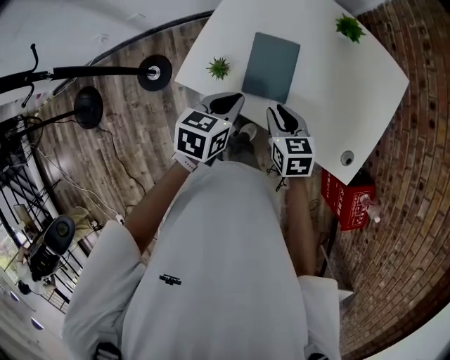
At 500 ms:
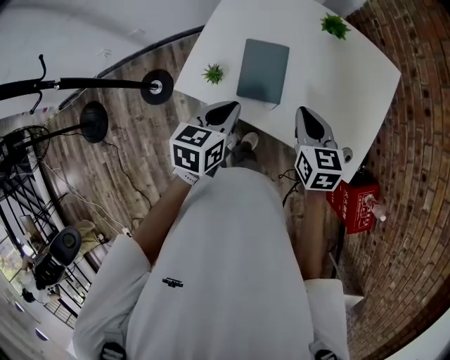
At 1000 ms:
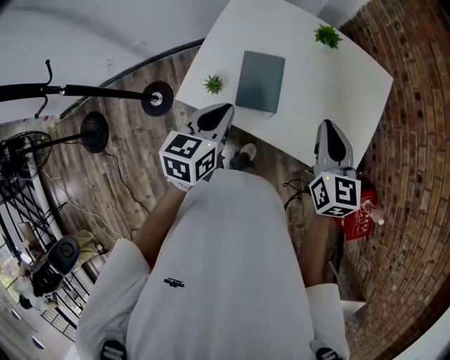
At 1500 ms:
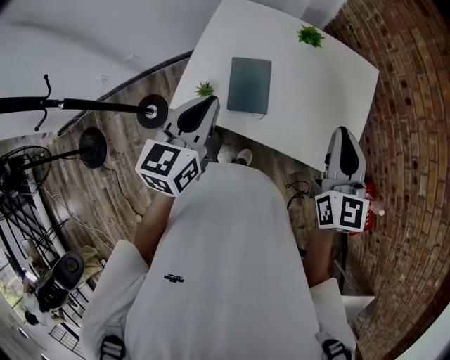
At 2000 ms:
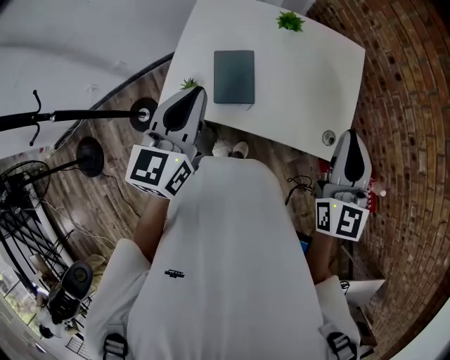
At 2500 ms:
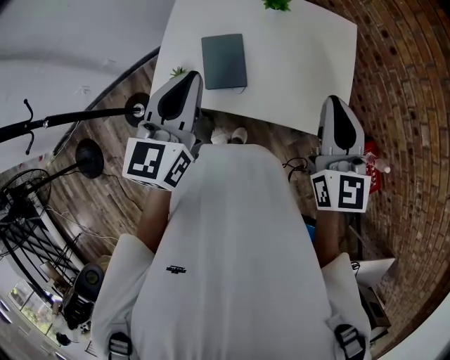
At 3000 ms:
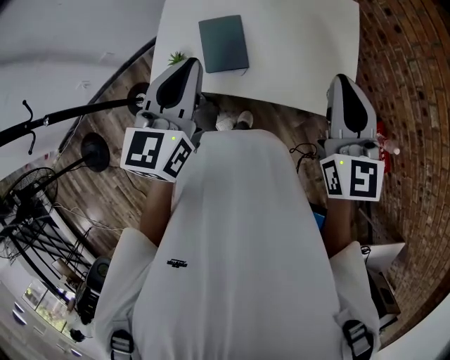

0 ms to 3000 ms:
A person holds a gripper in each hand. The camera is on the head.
0 ms to 1500 ms: The left gripper travels upward by approximately 20 cm, and swivels about 30 degrees. Meanwhile the right gripper travels upward and to the right by roughly 30 cm, and points its fingers roughly 30 degrees further upward.
1500 ms to 3000 ms: The left gripper shifts by approximately 5 cm.

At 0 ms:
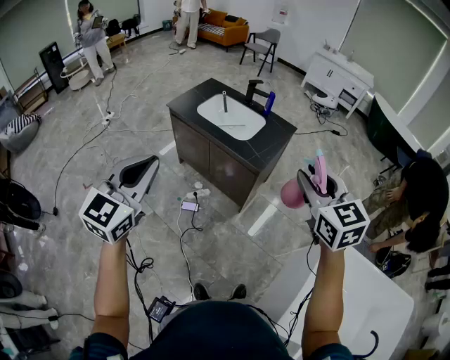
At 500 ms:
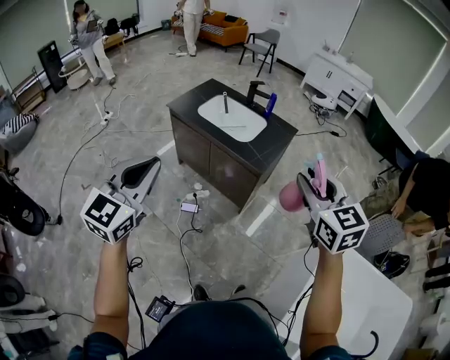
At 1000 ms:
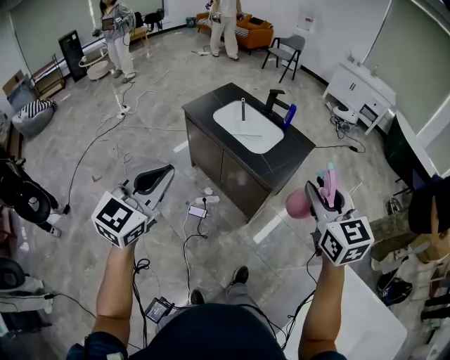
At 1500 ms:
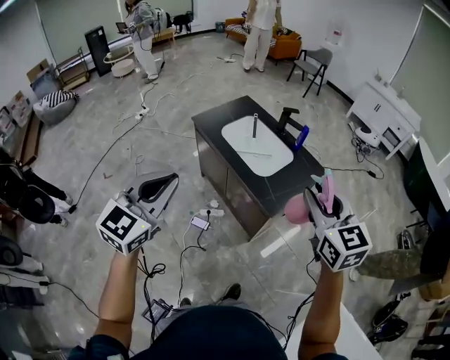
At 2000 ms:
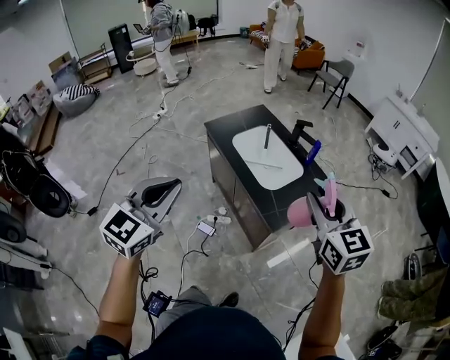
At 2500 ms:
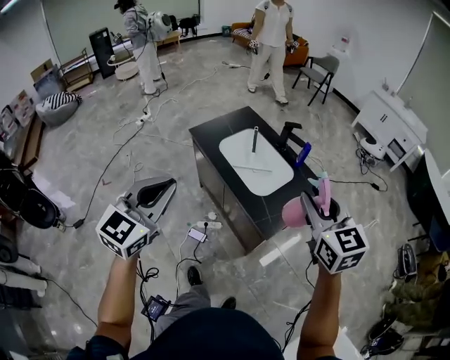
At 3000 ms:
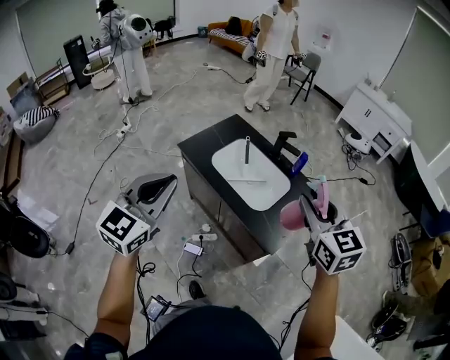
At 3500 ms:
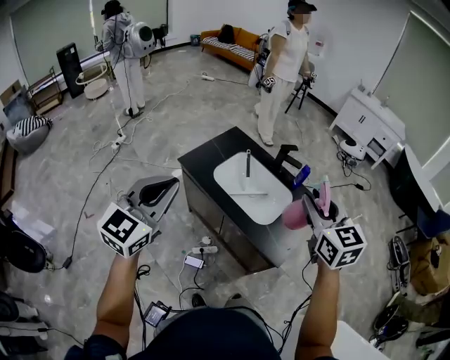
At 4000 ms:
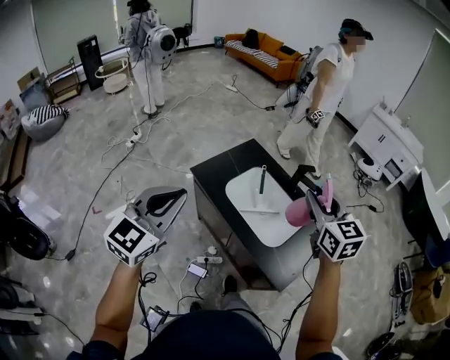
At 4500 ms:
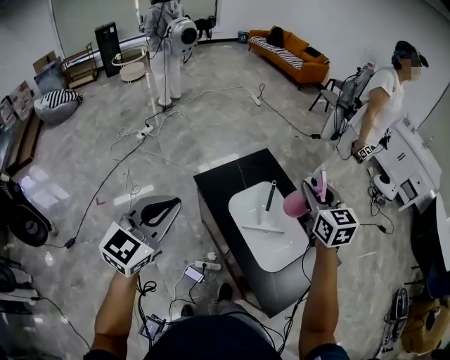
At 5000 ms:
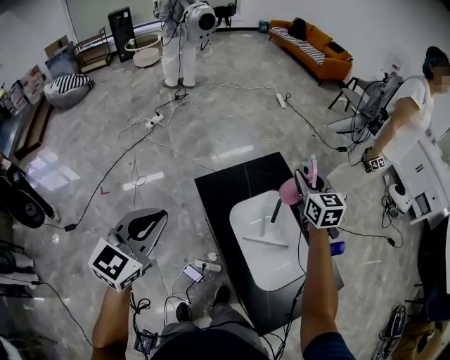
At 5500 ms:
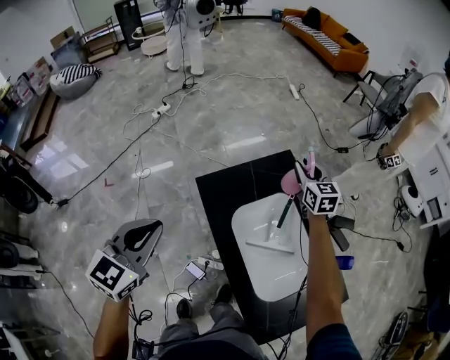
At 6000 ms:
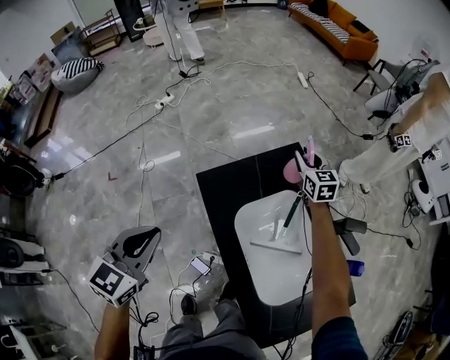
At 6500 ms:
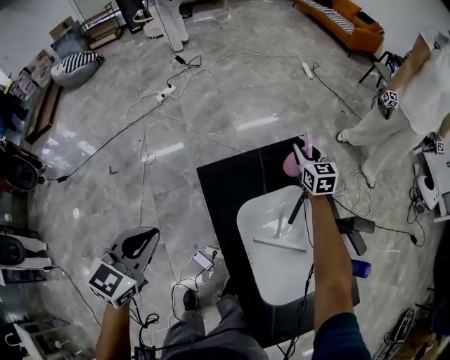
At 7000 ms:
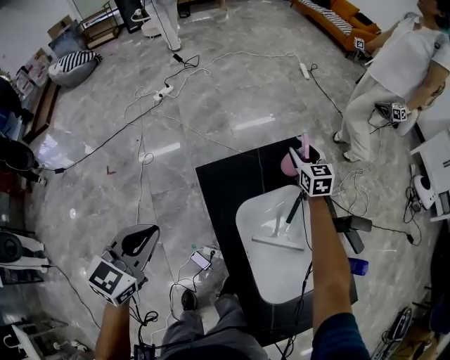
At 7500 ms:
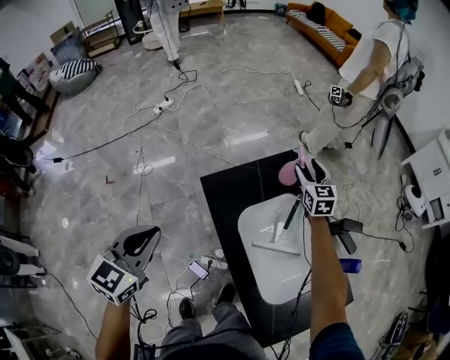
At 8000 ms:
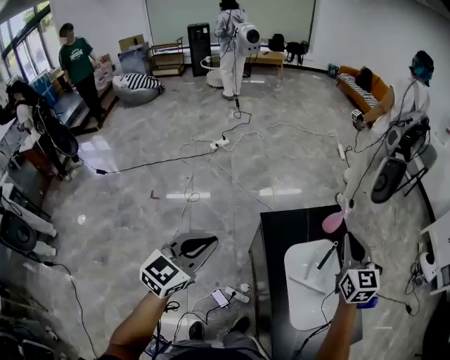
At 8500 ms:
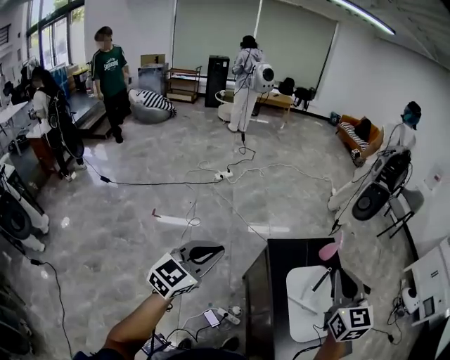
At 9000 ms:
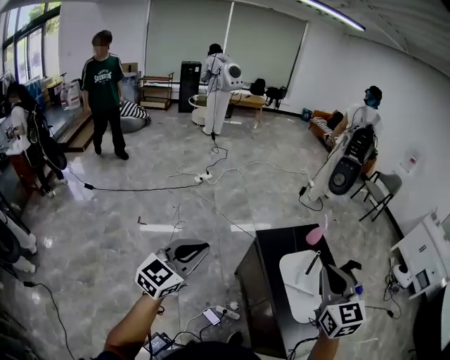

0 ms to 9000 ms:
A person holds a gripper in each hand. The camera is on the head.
0 ms to 2000 ms: The left gripper is displaced forward and to the right by some 25 cm. The right gripper heads forward, covering about 30 cm.
2000 ms to 4500 ms: Both grippers are carried forward, about 50 cm.
4500 ms to 7000 ms: The left gripper is displaced downward and forward by roughly 30 cm, and changes its angle by some 30 degrees. The right gripper moves forward and downward, approximately 50 cm, and opens its fingers.
7000 ms to 9000 ms: The two grippers travel together, backward and to the left, approximately 50 cm. The left gripper goes about 25 cm upward, and rotates about 20 degrees. The right gripper goes roughly 50 cm upward, and closes.

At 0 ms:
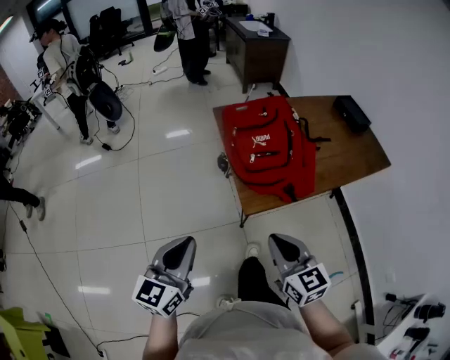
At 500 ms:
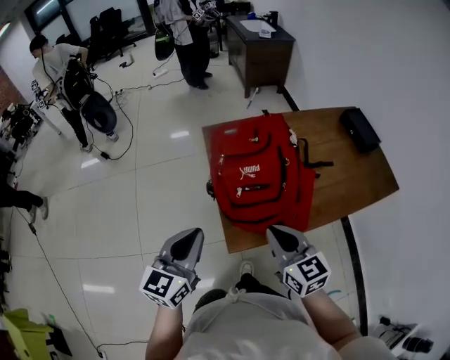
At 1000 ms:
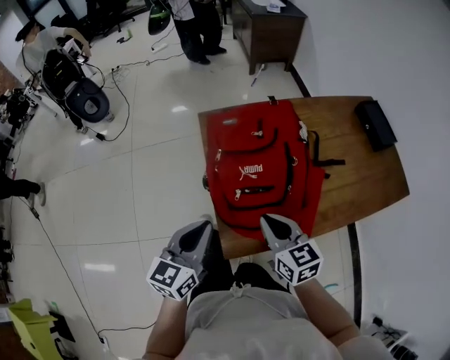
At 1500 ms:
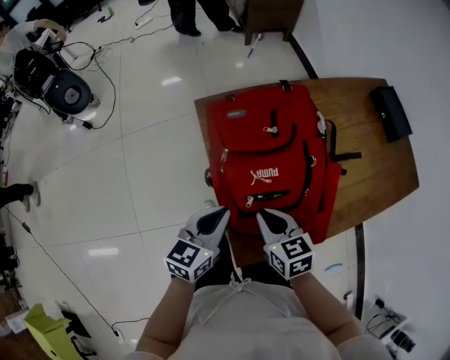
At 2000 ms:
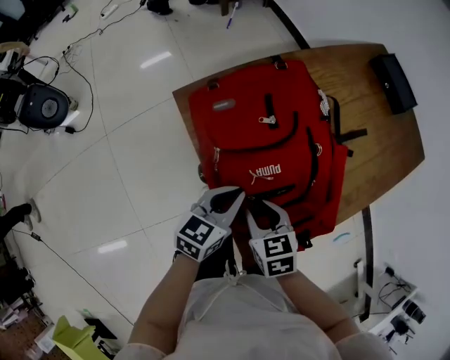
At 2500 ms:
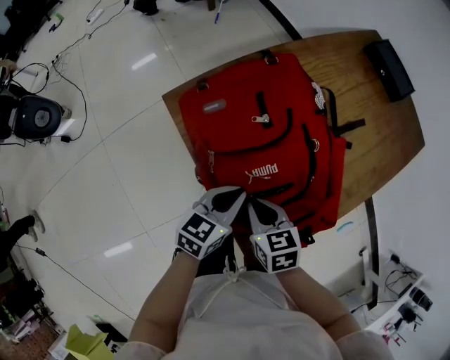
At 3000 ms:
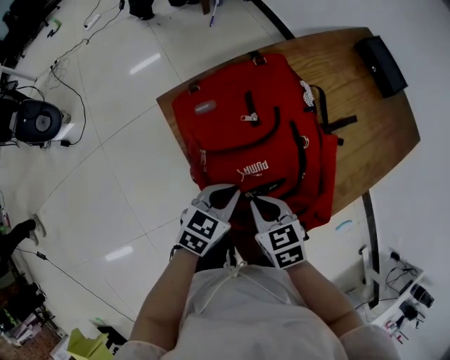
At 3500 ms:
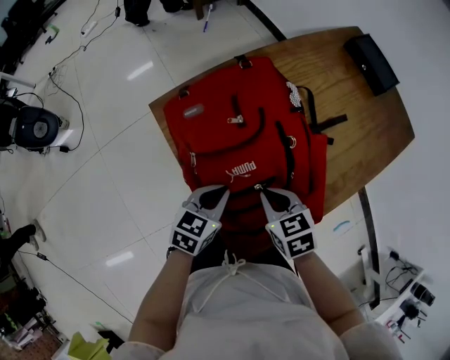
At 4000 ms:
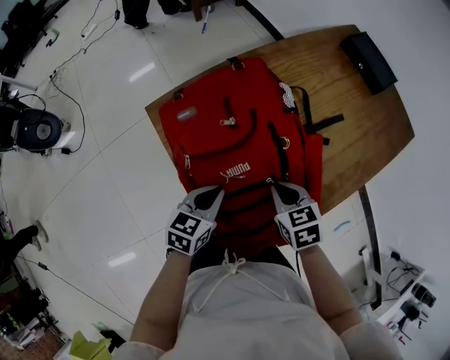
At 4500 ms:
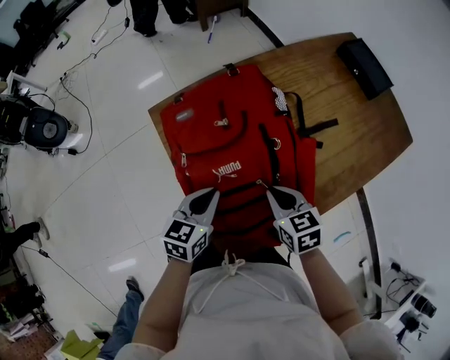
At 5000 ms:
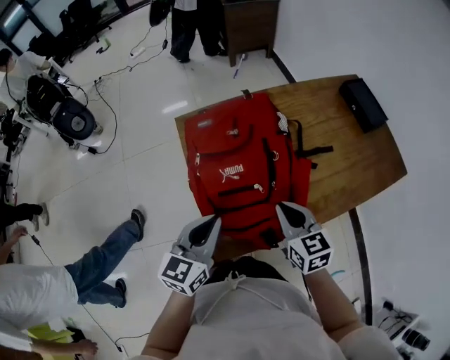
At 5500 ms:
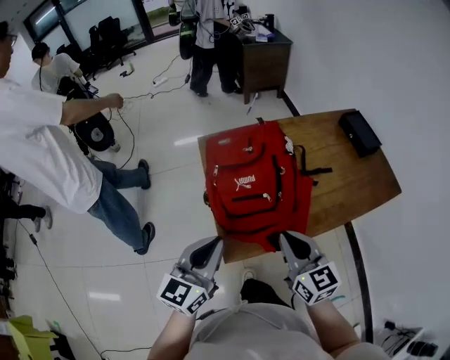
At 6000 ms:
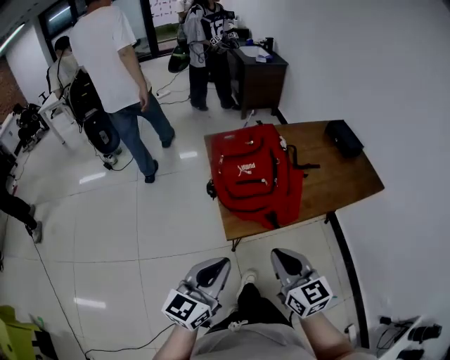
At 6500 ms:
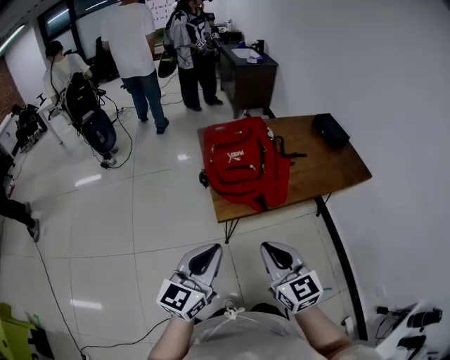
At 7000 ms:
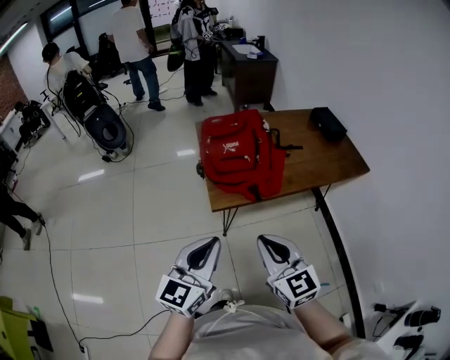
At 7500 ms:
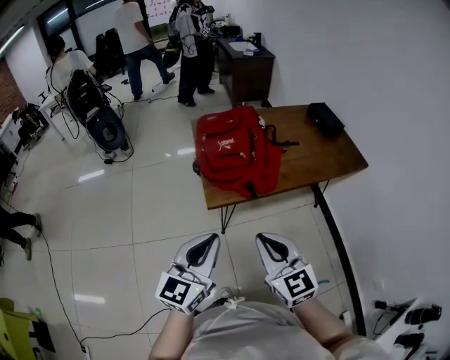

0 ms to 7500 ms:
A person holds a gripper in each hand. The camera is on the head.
0 ms to 2000 ms: The right gripper travels forward and downward by roughly 35 cm, tilts its fingers roughly 30 degrees downward, and opens its fingers, while the left gripper shifts some 40 cm forward, downward and to the right, and changes its angle by roughly 40 degrees.
2000 ms to 4000 ms: The right gripper travels to the right and forward by approximately 15 cm, and closes up.
4000 ms to 5500 ms: The grippers both shift upward and backward by some 25 cm. The right gripper tips its fingers upward by roughly 40 degrees. Meanwhile the left gripper points its fingers some 30 degrees further upward.
5500 ms to 7500 ms: The grippers both shift backward by roughly 25 cm.

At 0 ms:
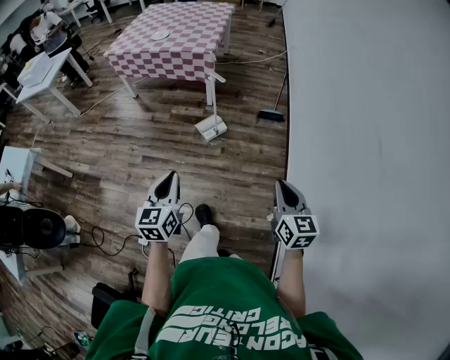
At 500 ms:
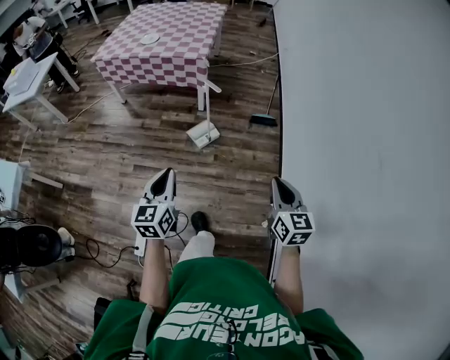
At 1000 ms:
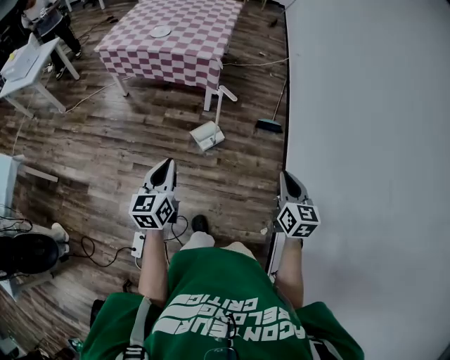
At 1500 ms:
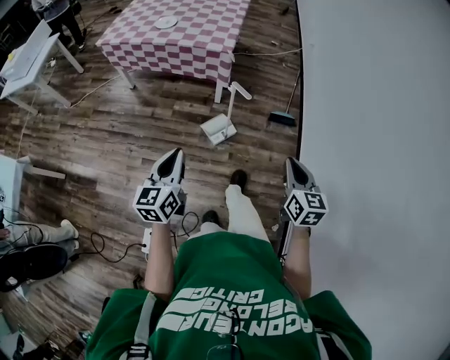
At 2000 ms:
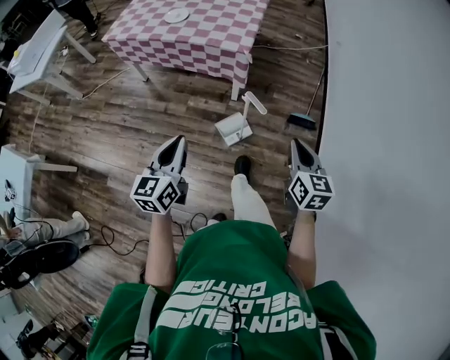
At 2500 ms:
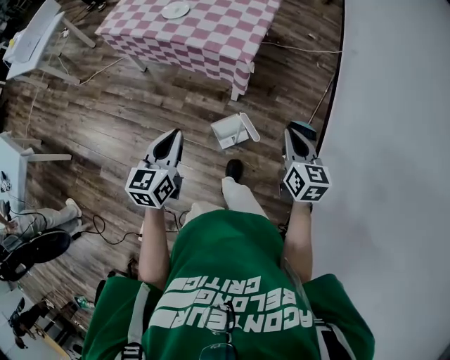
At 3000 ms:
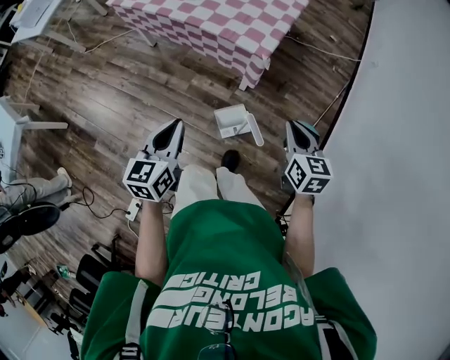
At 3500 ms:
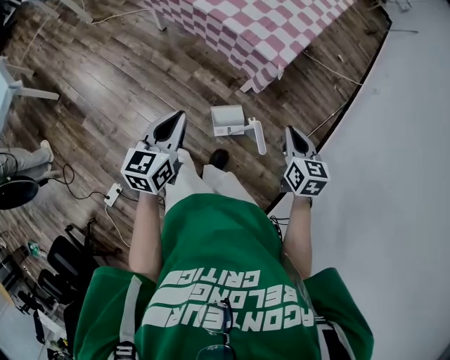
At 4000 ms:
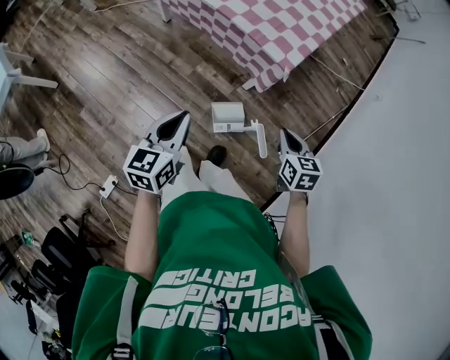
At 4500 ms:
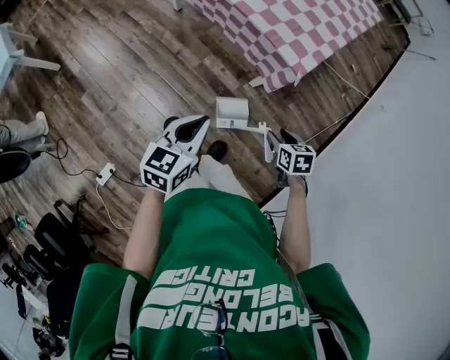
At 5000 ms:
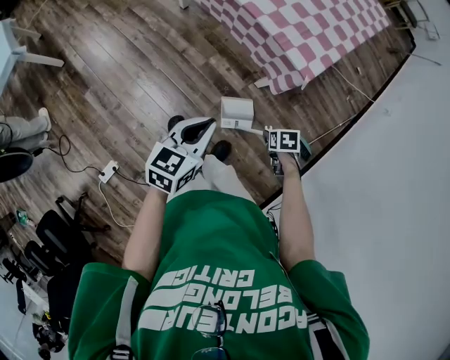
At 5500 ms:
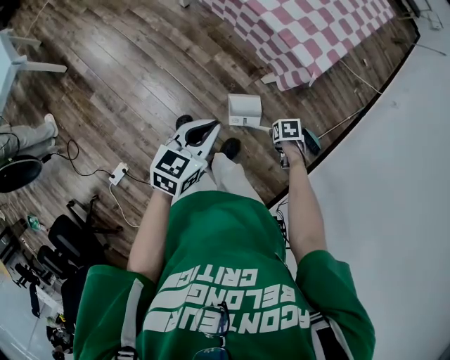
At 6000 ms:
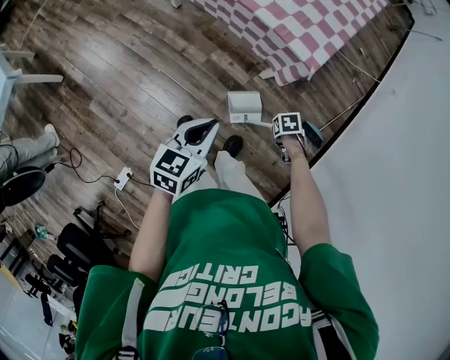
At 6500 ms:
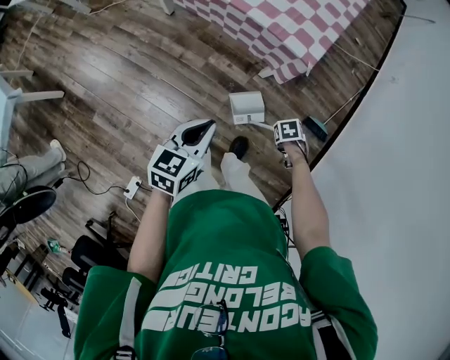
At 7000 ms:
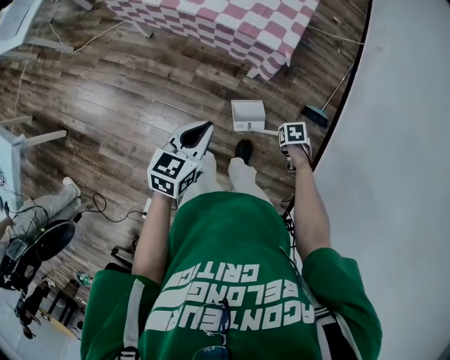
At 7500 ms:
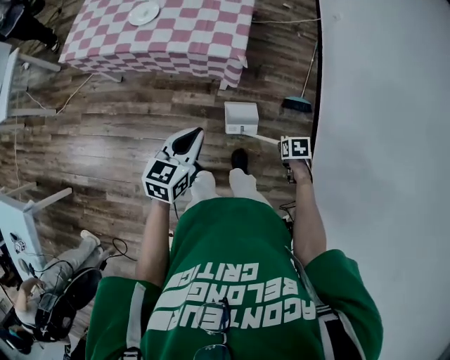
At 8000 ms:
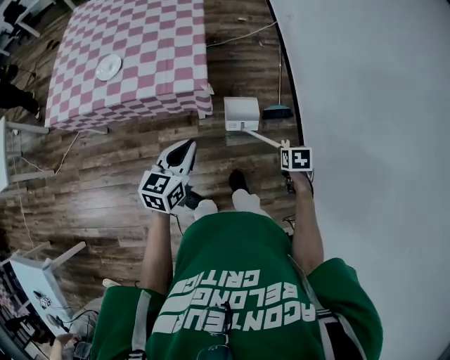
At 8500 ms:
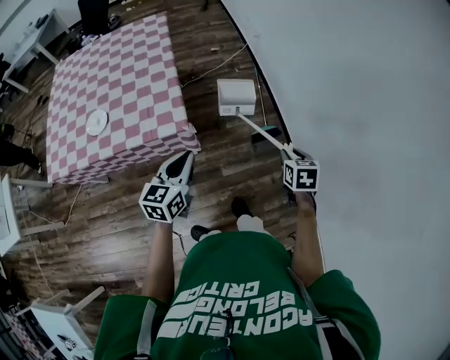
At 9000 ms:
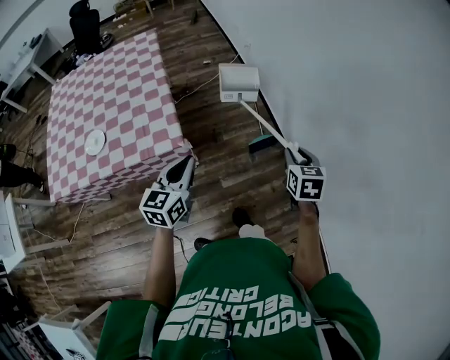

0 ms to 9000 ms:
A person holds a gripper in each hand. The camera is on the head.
0 ms to 2000 ms: The two grippers travel together, forward, approximately 50 cm.
2000 ms to 4500 ms: The right gripper ends up about 35 cm from where it was, tips its fingers downward by roughly 40 degrees, and opens up. The left gripper changes place by about 20 cm.
4500 ms to 7000 ms: The right gripper heads downward, covering about 10 cm, and rotates some 30 degrees, while the left gripper changes its angle by some 20 degrees.
7000 ms to 9000 ms: The left gripper changes place by some 30 cm, and swivels approximately 30 degrees; the right gripper is displaced upward by roughly 35 cm, and points its fingers approximately 50 degrees further upward.
